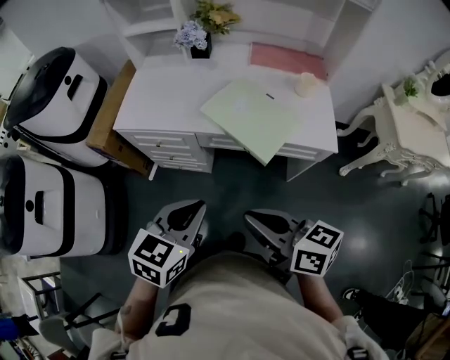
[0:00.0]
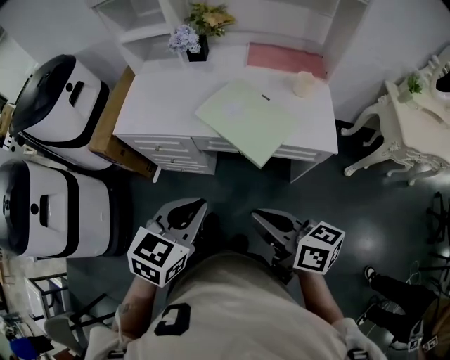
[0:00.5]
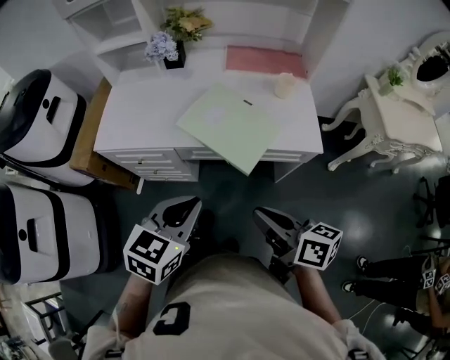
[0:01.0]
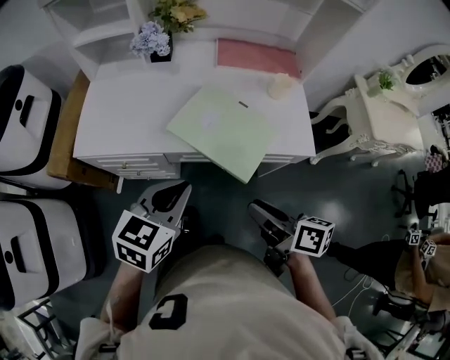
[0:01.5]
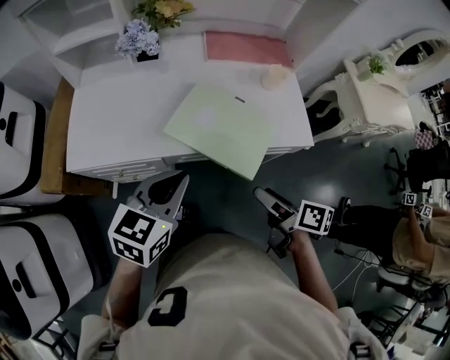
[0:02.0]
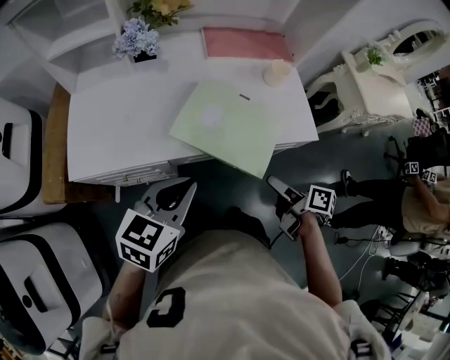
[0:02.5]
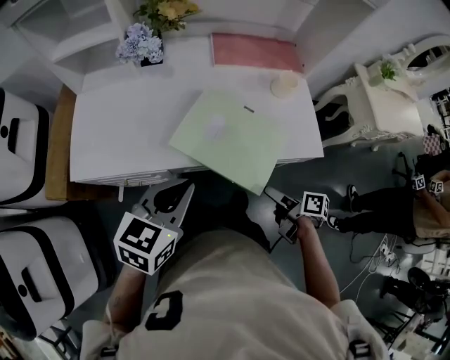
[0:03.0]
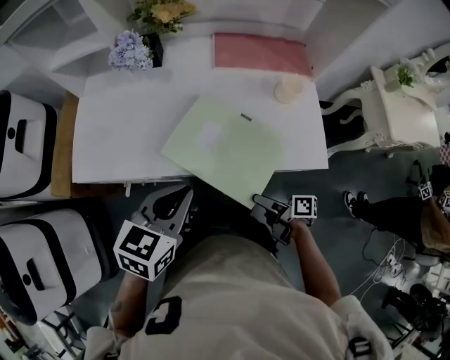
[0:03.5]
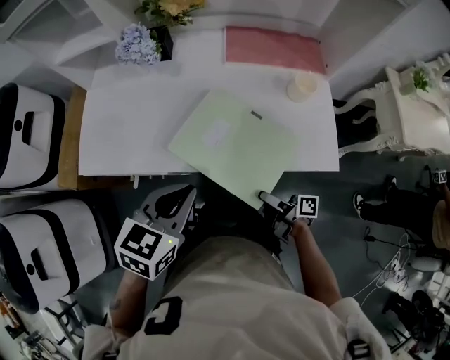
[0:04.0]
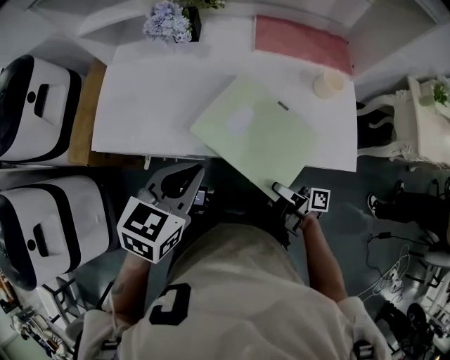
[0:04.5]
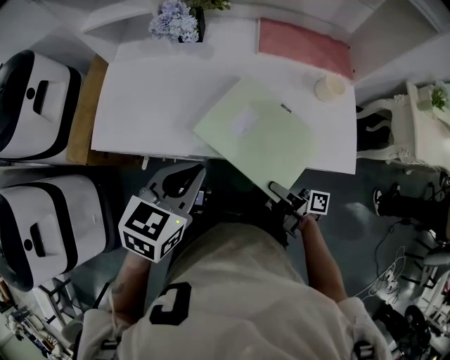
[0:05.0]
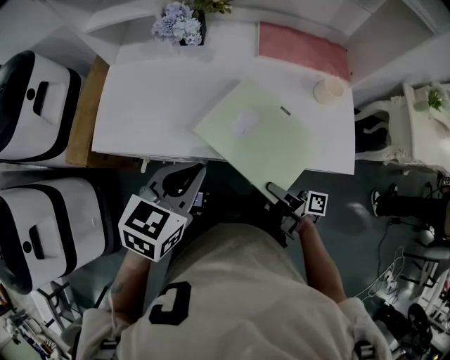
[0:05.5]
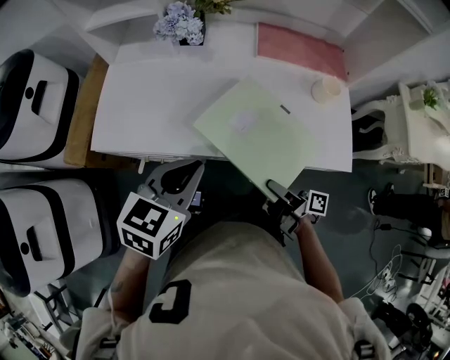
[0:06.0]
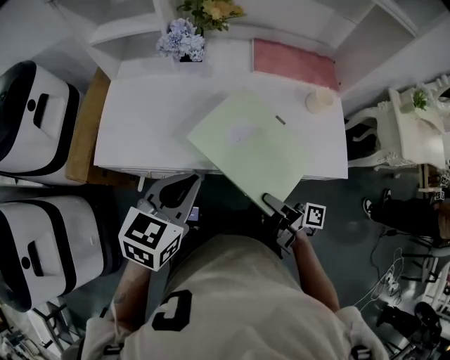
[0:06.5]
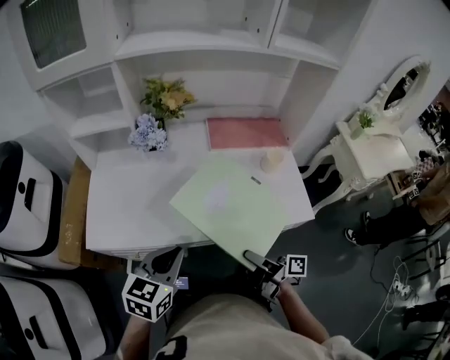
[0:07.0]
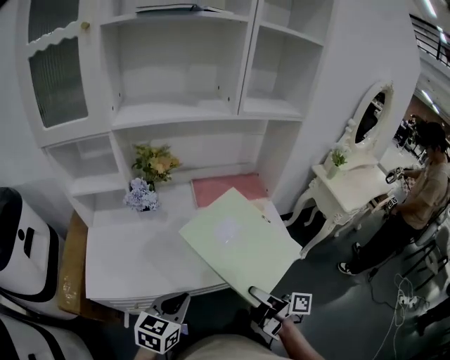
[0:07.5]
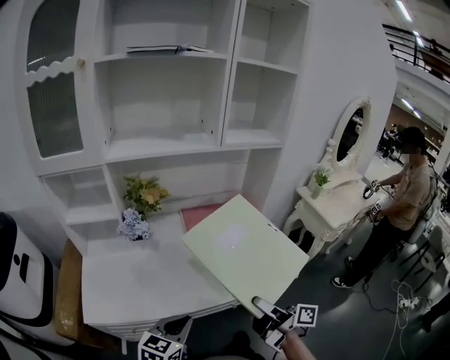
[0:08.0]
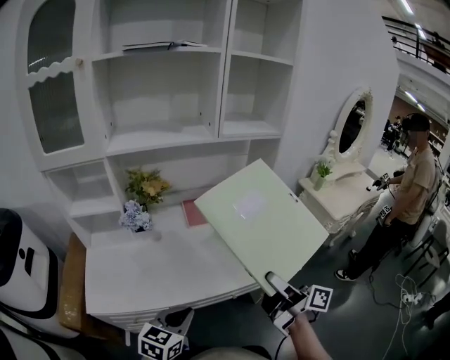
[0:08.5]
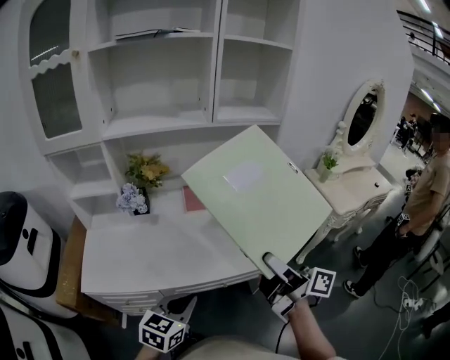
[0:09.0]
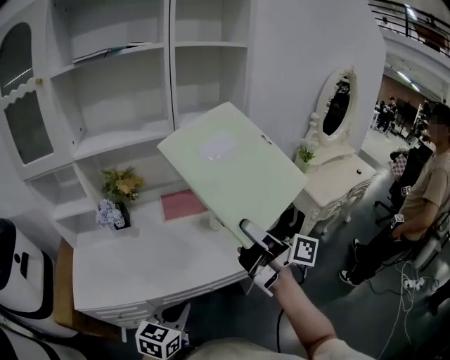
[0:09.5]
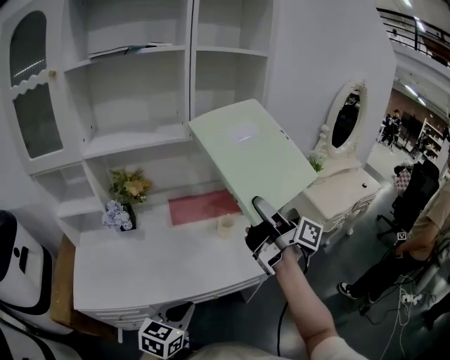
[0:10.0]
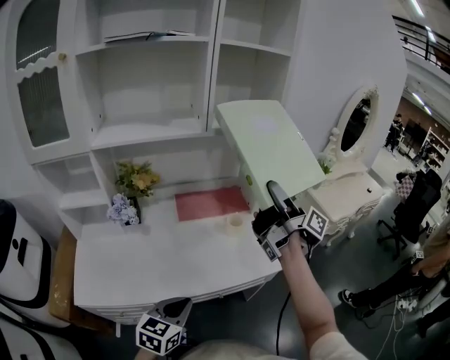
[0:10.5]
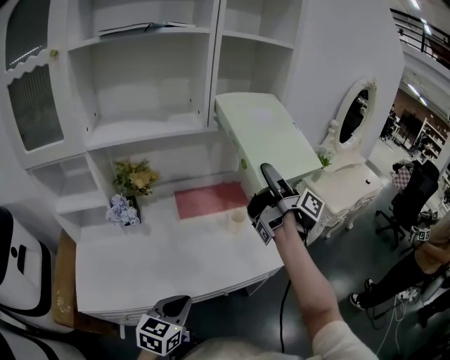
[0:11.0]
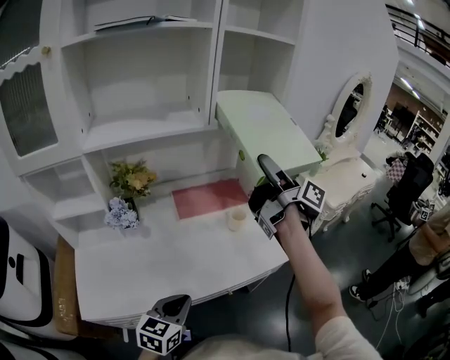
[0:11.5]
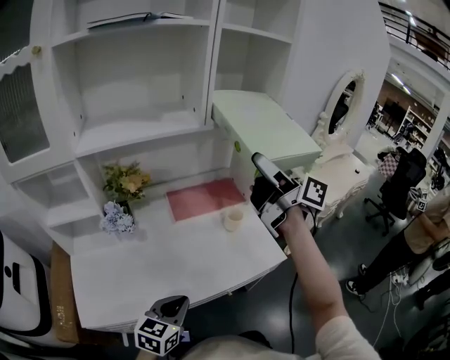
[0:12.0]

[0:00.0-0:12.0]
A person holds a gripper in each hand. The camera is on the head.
0:00.0 to 0:02.0: The left gripper is displaced forward by roughly 20 cm. The right gripper goes approximately 20 cm forward, downward and to the right, swivels about 50 degrees, and opens its fingers.
0:02.0 to 0:04.0: The right gripper is displaced downward and forward by approximately 15 cm, and swivels roughly 30 degrees, while the left gripper shifts by some 5 cm.
0:04.0 to 0:06.0: The right gripper shifts by some 5 cm, and closes. The left gripper travels to the left by some 5 cm.
0:06.0 to 0:08.0: The right gripper goes approximately 20 cm upward, and changes its angle by about 40 degrees.
0:08.0 to 0:10.0: The left gripper goes roughly 10 cm to the right; the right gripper heads upward, forward and to the right, covering some 25 cm.
0:10.0 to 0:12.0: The left gripper heads to the left and forward, covering approximately 10 cm; the right gripper is displaced forward, to the left and upward by about 15 cm.

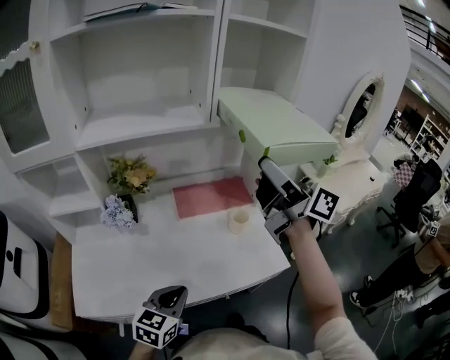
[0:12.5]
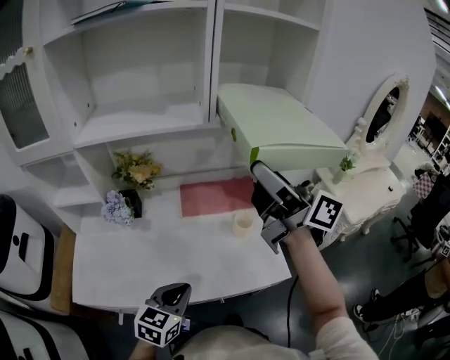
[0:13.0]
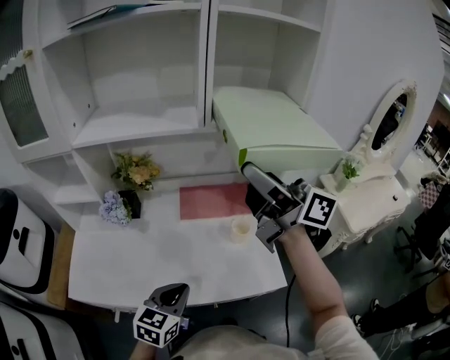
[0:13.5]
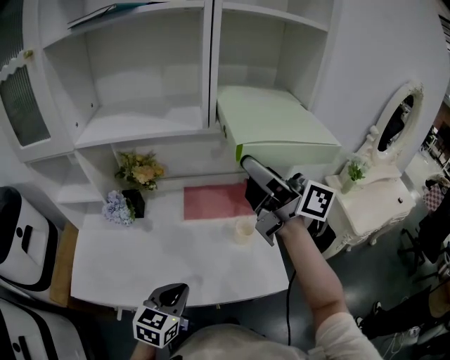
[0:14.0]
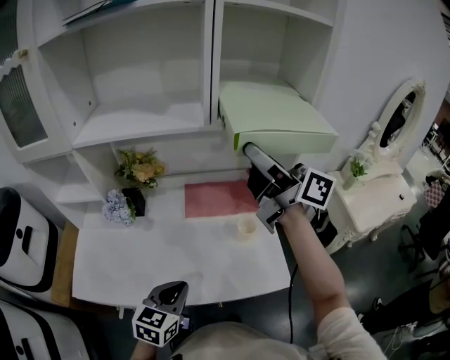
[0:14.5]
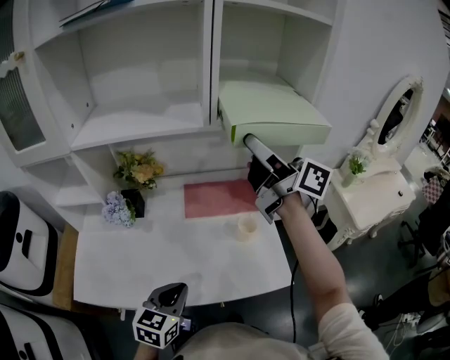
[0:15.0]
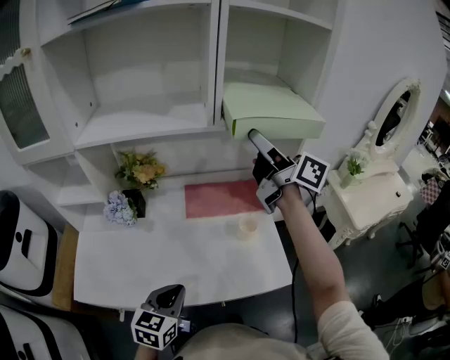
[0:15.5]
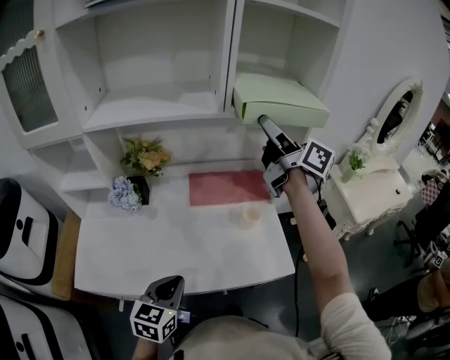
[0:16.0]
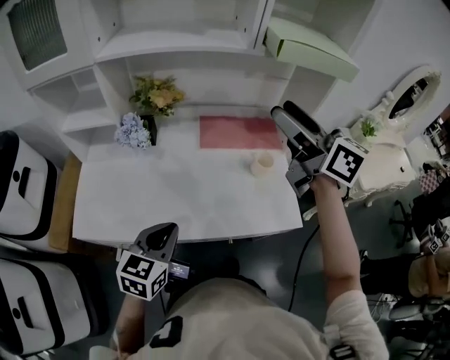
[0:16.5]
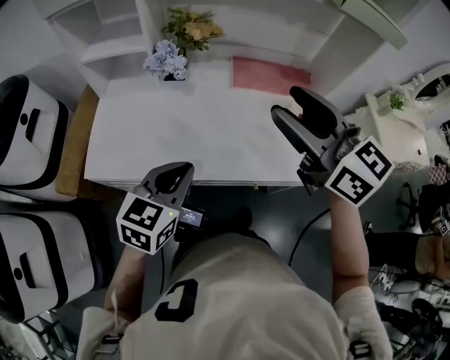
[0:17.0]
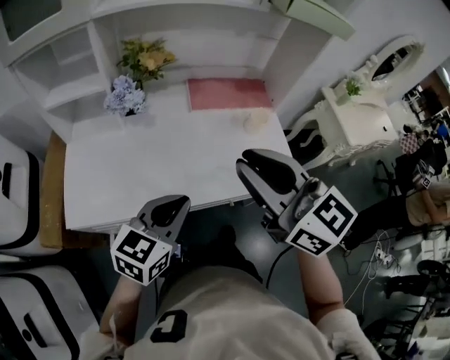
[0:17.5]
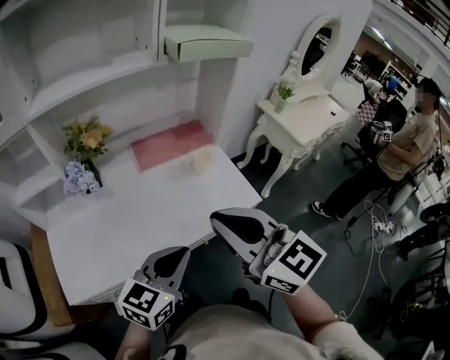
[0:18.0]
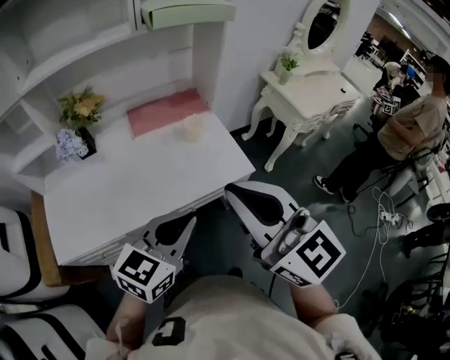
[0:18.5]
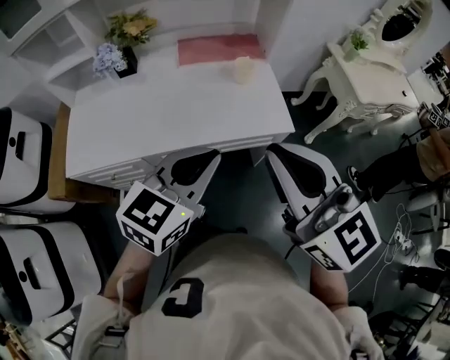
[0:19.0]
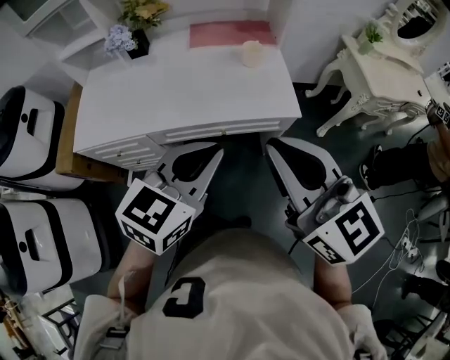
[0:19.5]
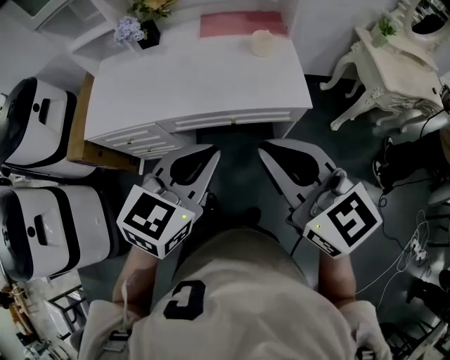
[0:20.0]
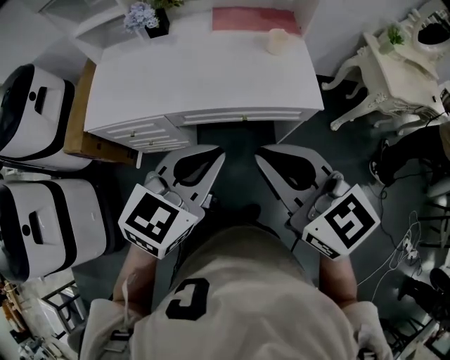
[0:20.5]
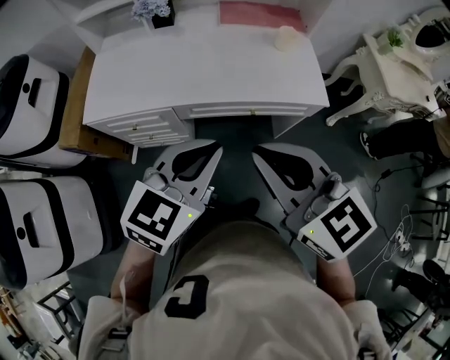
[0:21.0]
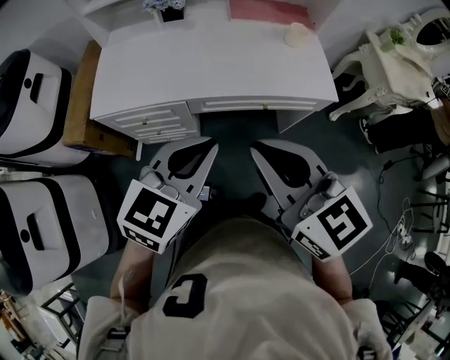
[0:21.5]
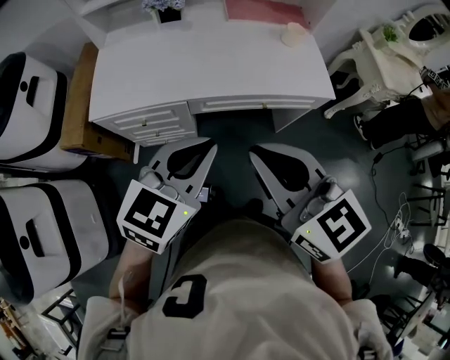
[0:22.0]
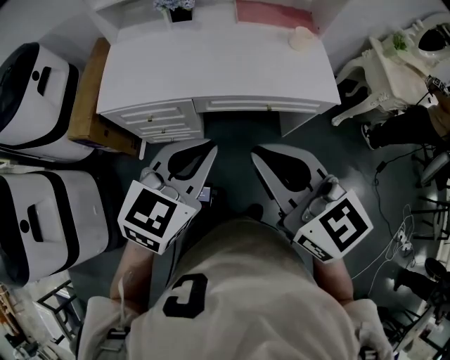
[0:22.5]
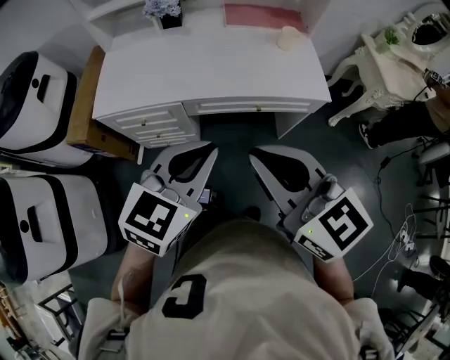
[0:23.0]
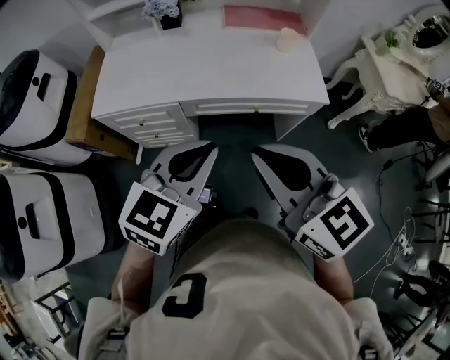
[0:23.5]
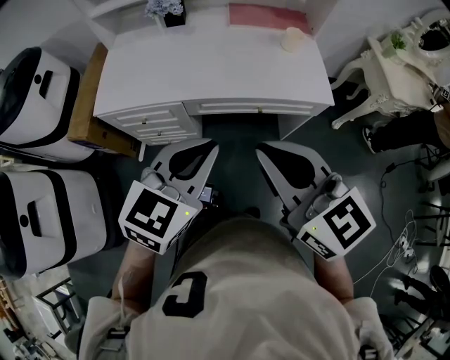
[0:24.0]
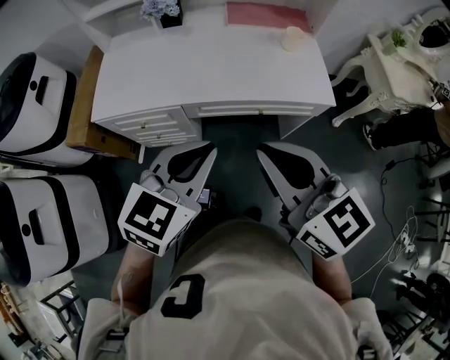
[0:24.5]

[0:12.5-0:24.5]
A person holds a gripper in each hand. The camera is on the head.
0:12.5 to 0:14.5: The left gripper heads to the right, covering some 5 cm. The right gripper shifts approximately 10 cm forward.
0:14.5 to 0:16.5: The left gripper heads to the left, covering approximately 10 cm; the right gripper shifts roughly 5 cm backward, and changes its angle by approximately 30 degrees.
0:16.5 to 0:18.5: The right gripper ends up about 35 cm from where it was, changes its angle by about 30 degrees, and closes its fingers. Meanwhile the left gripper shifts by about 20 cm, and swivels about 30 degrees.
0:18.5 to 0:20.5: The right gripper shifts approximately 15 cm downward and backward, and changes its angle by approximately 30 degrees. Meanwhile the left gripper shifts approximately 10 cm backward.
0:20.5 to 0:22.5: The two grippers go approximately 15 cm to the left.
0:22.5 to 0:24.5: The right gripper travels to the right by roughly 5 cm.

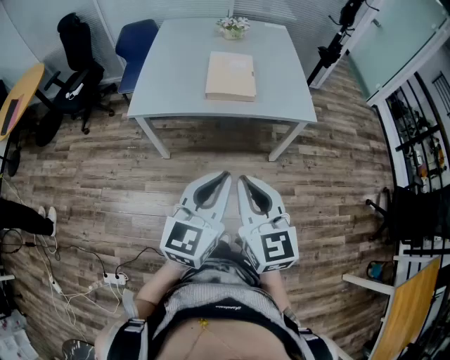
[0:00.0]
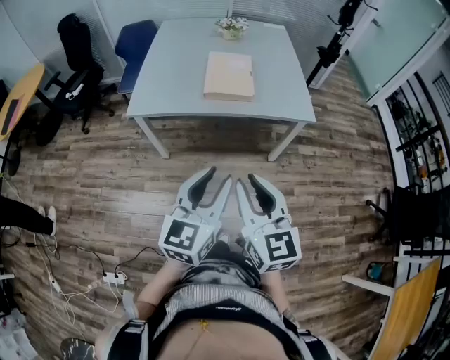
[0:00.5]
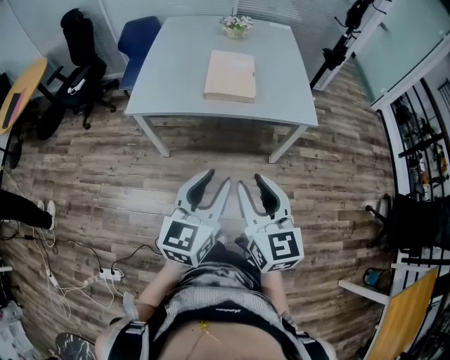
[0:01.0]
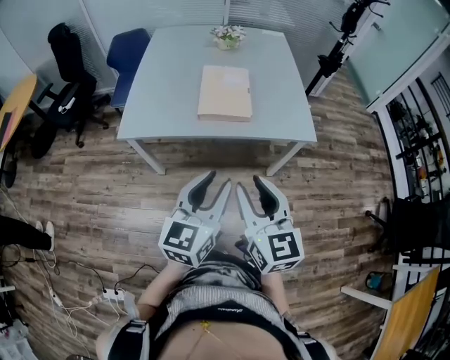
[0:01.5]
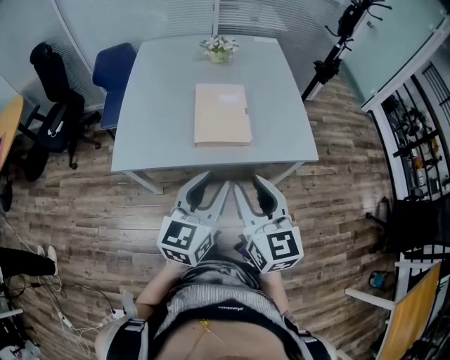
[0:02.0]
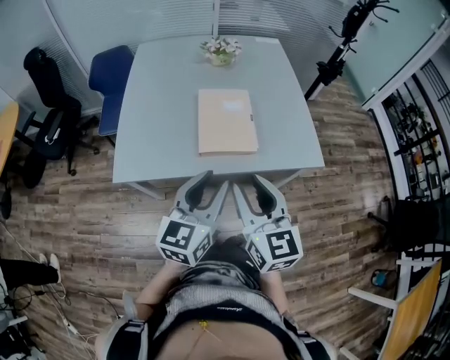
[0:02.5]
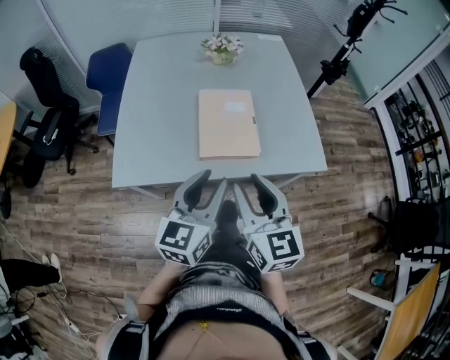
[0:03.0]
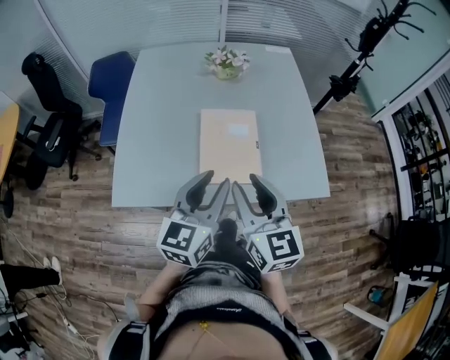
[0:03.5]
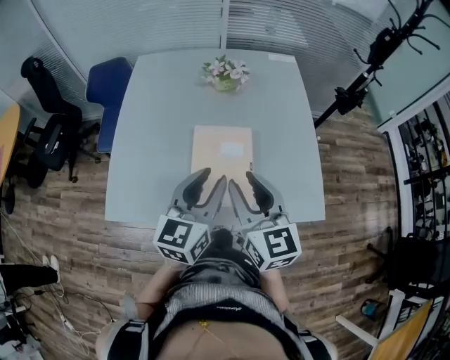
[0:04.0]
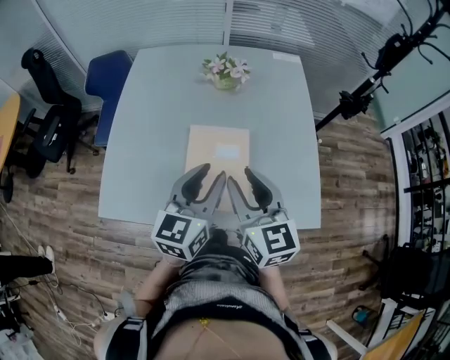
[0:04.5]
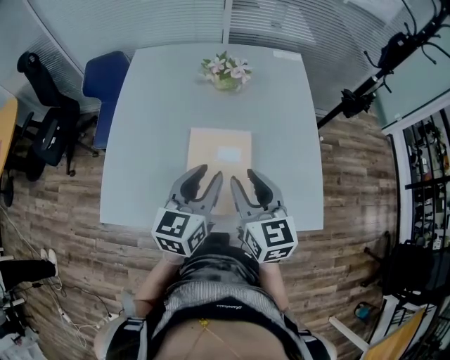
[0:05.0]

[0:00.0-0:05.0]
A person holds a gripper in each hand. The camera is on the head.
0:00.0 to 0:02.5: The grippers both shift forward by approximately 30 cm. The right gripper opens. Meanwhile the left gripper opens.
0:02.5 to 0:05.0: Both grippers move forward, approximately 30 cm.
